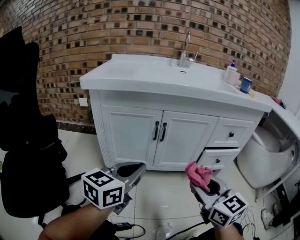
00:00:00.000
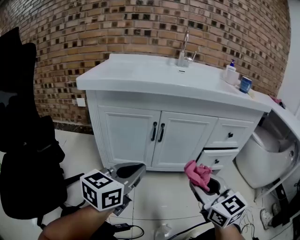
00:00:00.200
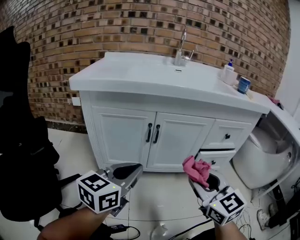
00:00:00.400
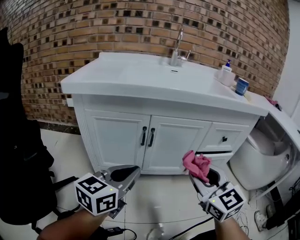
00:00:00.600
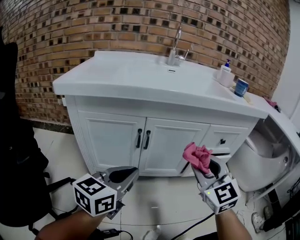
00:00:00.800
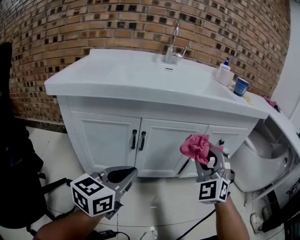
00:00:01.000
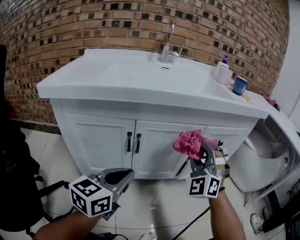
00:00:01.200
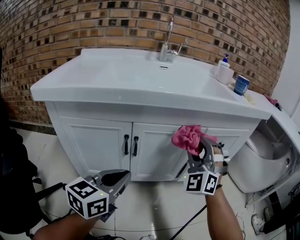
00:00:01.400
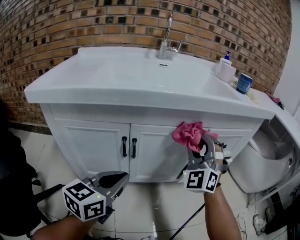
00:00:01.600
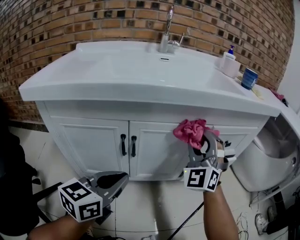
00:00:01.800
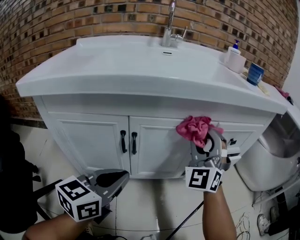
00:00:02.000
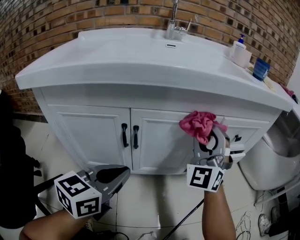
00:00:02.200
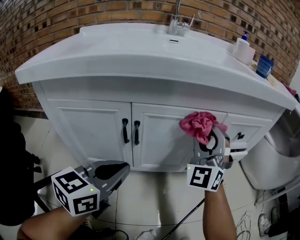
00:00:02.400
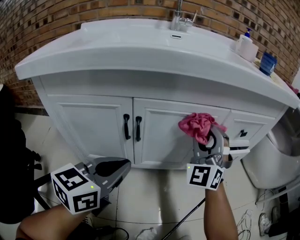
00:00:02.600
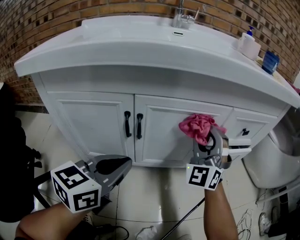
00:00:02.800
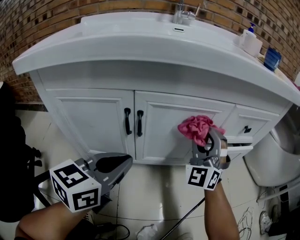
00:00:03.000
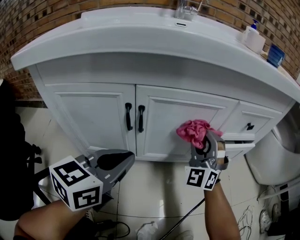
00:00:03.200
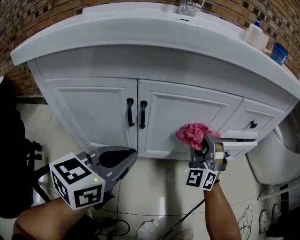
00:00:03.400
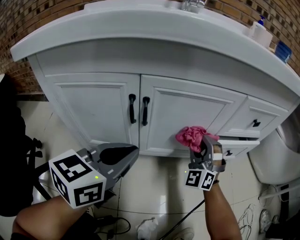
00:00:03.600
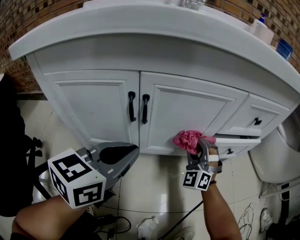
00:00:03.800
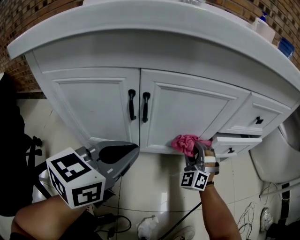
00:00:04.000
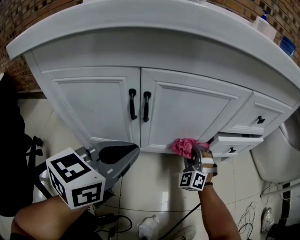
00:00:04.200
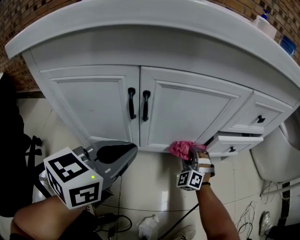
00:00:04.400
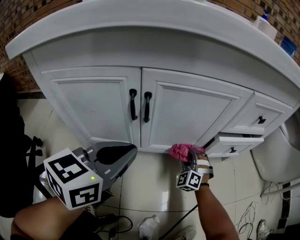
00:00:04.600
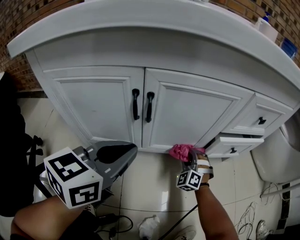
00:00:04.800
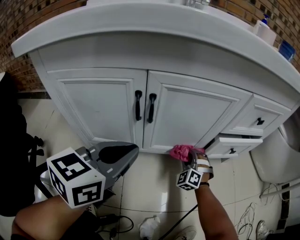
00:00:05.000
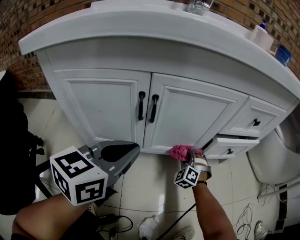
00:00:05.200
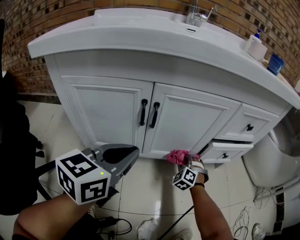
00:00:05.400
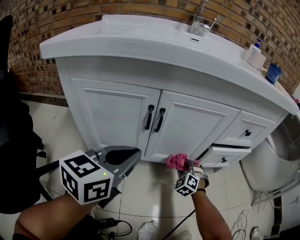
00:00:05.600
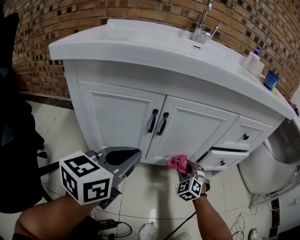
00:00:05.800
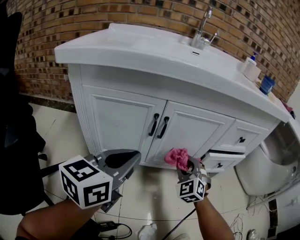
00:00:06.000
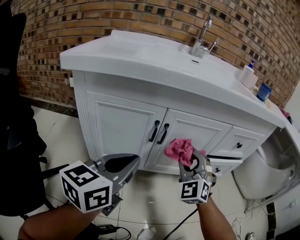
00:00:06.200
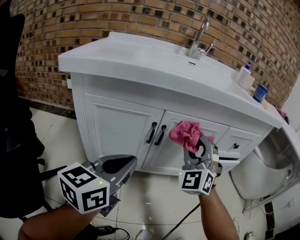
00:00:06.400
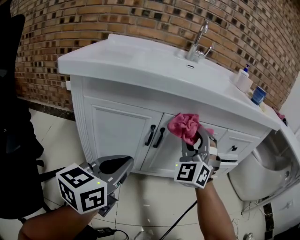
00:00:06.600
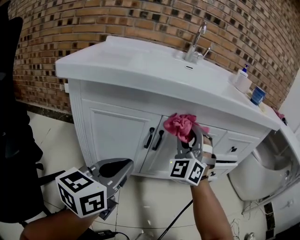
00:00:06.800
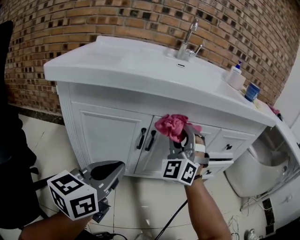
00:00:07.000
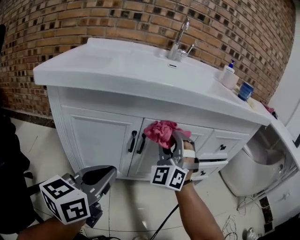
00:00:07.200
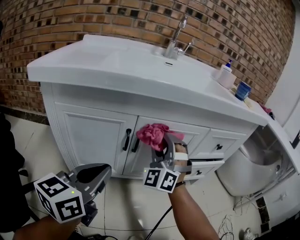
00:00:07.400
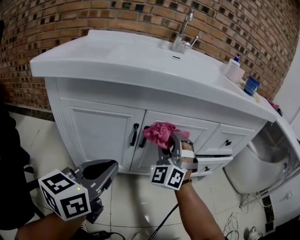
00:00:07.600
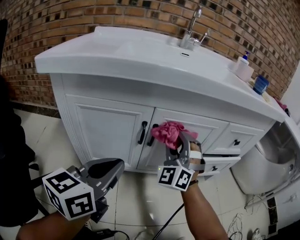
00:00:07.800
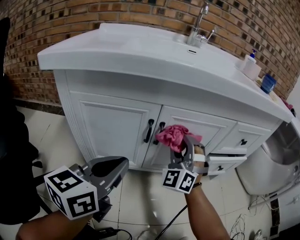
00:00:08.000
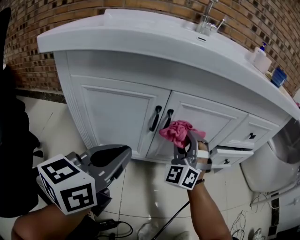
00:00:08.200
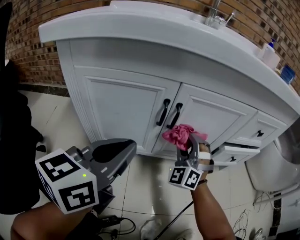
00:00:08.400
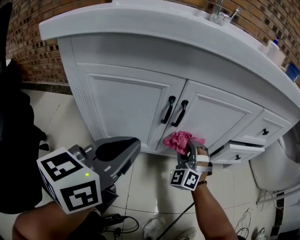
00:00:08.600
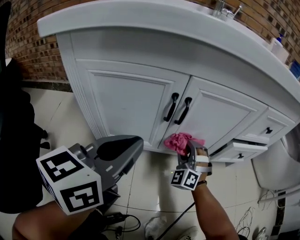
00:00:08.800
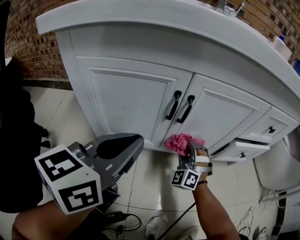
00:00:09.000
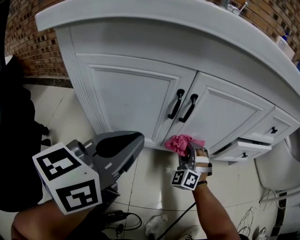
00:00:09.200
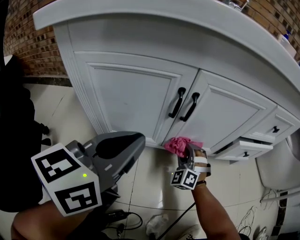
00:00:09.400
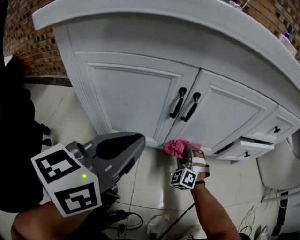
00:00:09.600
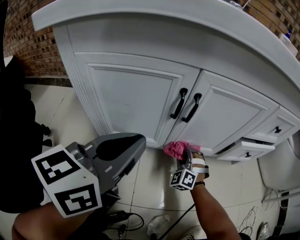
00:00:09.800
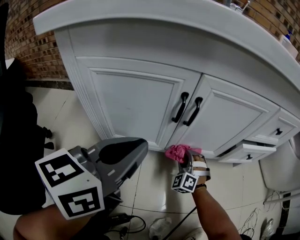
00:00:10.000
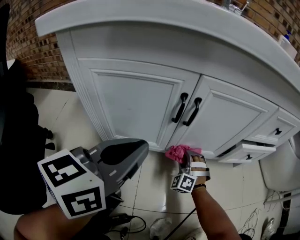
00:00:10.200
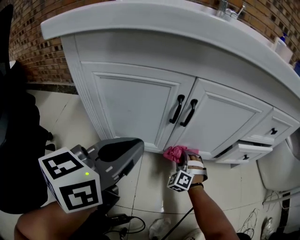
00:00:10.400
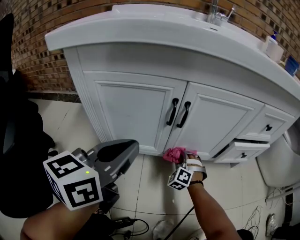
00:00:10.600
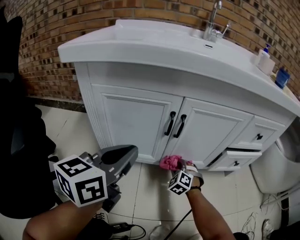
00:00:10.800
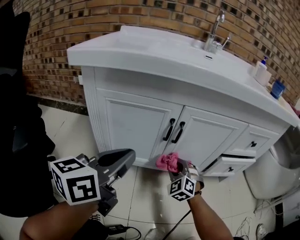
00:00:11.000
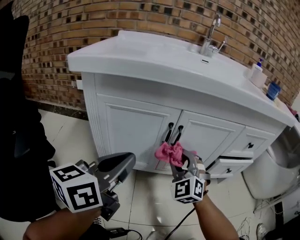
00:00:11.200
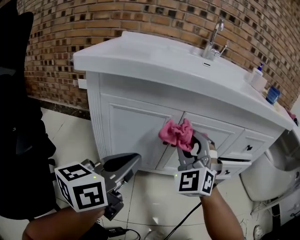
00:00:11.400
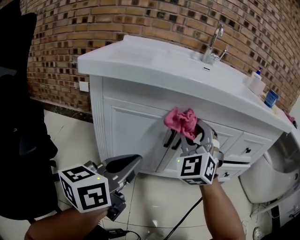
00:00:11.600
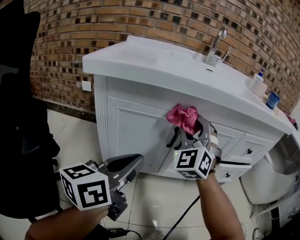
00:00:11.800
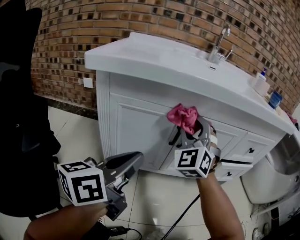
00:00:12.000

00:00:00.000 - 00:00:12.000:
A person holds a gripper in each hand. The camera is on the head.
00:00:00.000 - 00:00:01.600: The left gripper heads forward, covering about 15 cm, while the right gripper moves forward, about 30 cm, and twists approximately 60 degrees counterclockwise, seen from behind.
00:00:01.600 - 00:00:03.000: The right gripper shifts roughly 10 cm downward.
00:00:03.000 - 00:00:04.400: The right gripper shifts roughly 25 cm downward, and rotates about 30 degrees.
00:00:04.400 - 00:00:06.000: The left gripper travels upward and backward by approximately 10 cm. Meanwhile the right gripper travels upward and backward by about 15 cm.
00:00:06.000 - 00:00:07.600: The right gripper shifts some 15 cm upward and to the left, and swivels roughly 30 degrees.
00:00:07.600 - 00:00:09.000: The right gripper moves downward, roughly 25 cm.
00:00:09.000 - 00:00:10.400: The right gripper travels downward by approximately 10 cm.
00:00:10.400 - 00:00:12.000: The left gripper travels upward by some 5 cm; the right gripper is displaced upward by some 40 cm, and tips its fingers upward by roughly 30 degrees.

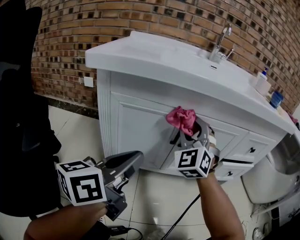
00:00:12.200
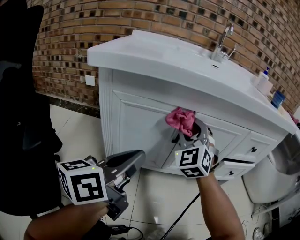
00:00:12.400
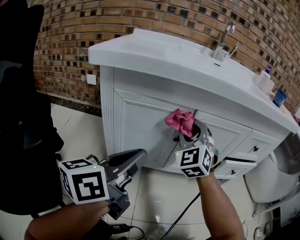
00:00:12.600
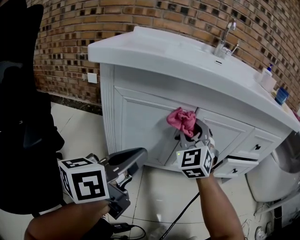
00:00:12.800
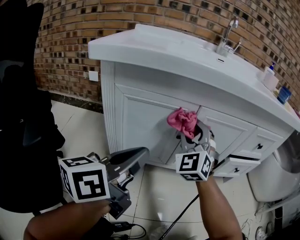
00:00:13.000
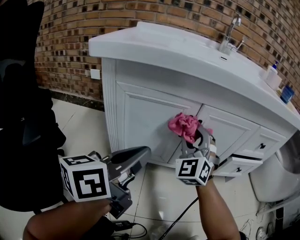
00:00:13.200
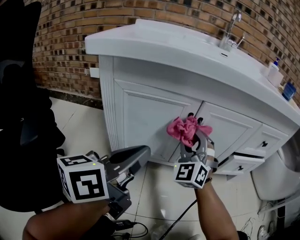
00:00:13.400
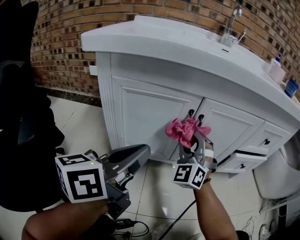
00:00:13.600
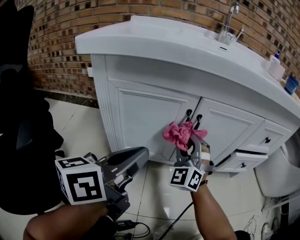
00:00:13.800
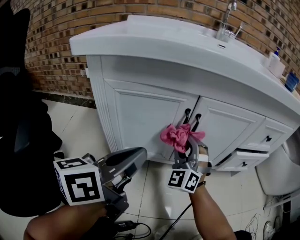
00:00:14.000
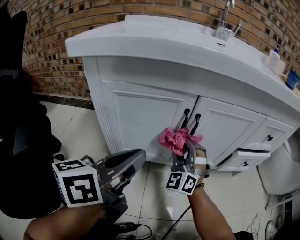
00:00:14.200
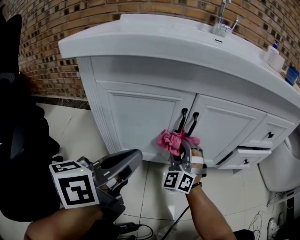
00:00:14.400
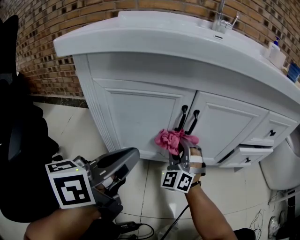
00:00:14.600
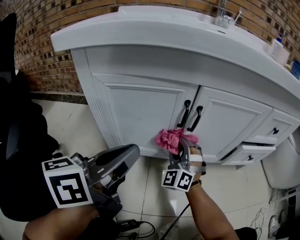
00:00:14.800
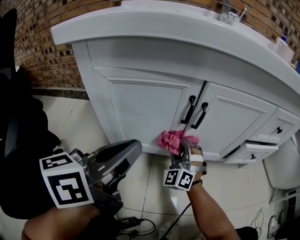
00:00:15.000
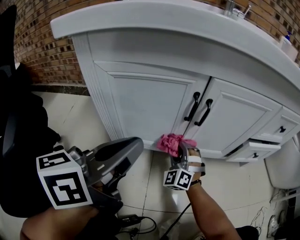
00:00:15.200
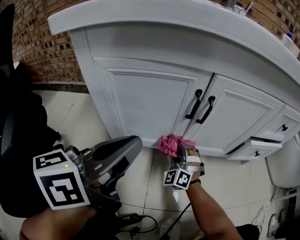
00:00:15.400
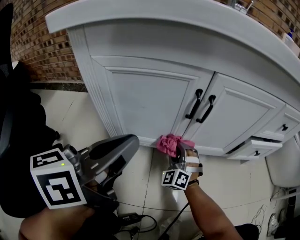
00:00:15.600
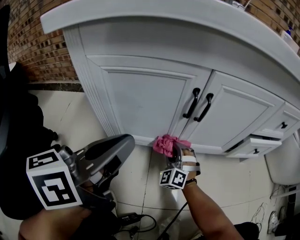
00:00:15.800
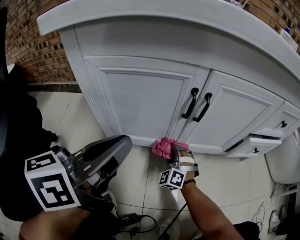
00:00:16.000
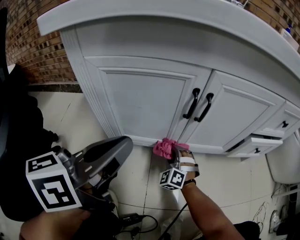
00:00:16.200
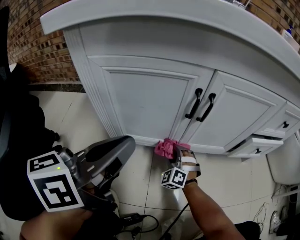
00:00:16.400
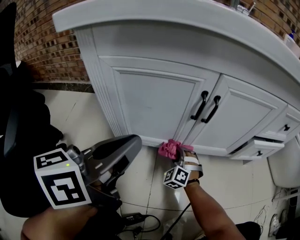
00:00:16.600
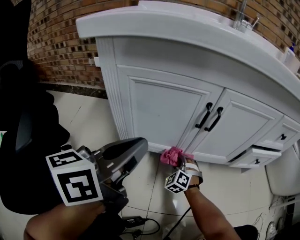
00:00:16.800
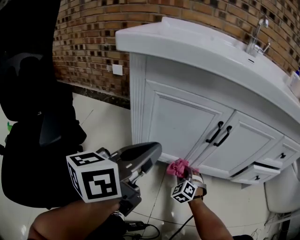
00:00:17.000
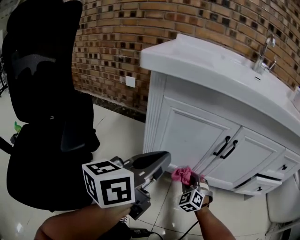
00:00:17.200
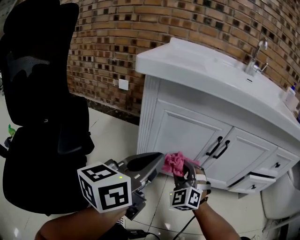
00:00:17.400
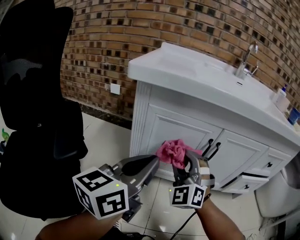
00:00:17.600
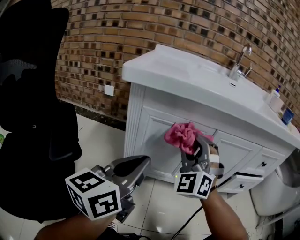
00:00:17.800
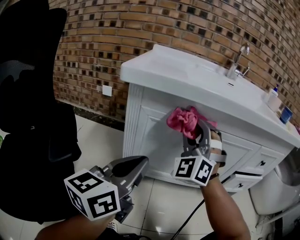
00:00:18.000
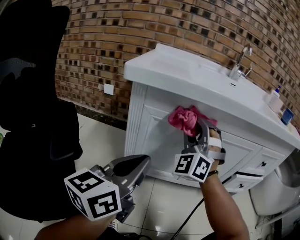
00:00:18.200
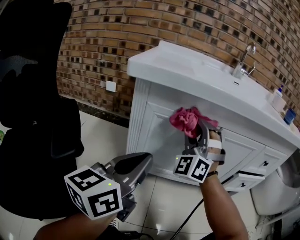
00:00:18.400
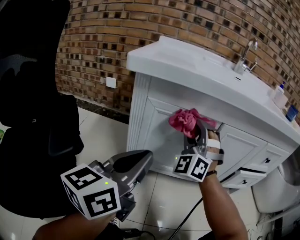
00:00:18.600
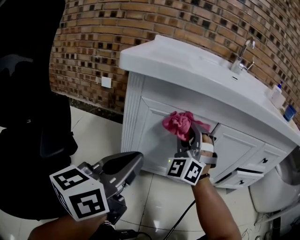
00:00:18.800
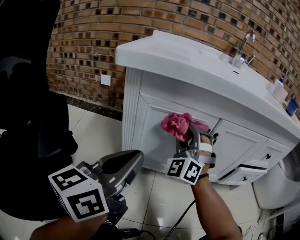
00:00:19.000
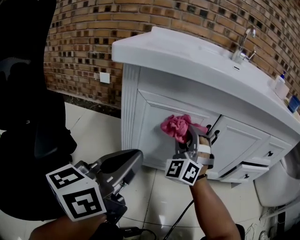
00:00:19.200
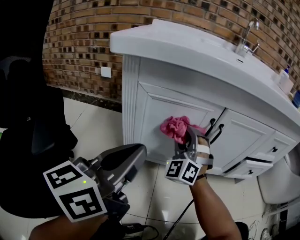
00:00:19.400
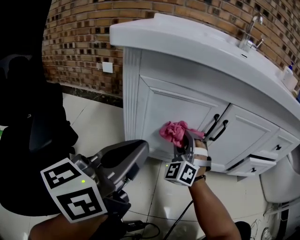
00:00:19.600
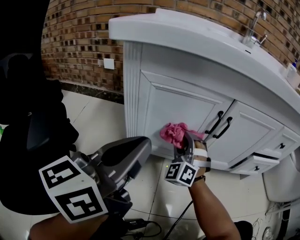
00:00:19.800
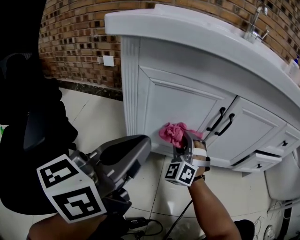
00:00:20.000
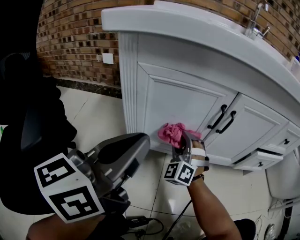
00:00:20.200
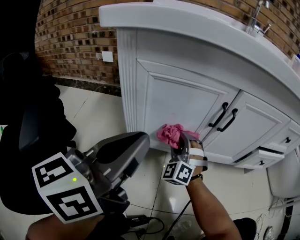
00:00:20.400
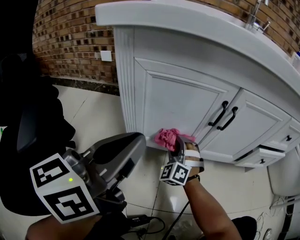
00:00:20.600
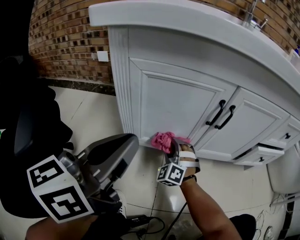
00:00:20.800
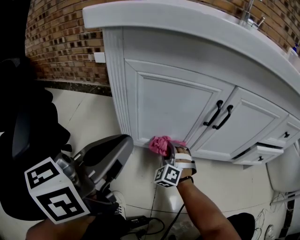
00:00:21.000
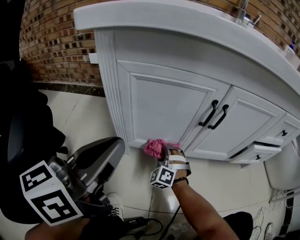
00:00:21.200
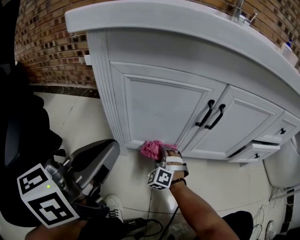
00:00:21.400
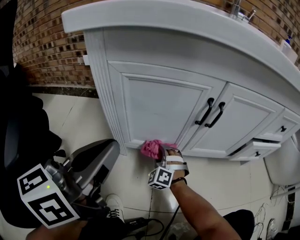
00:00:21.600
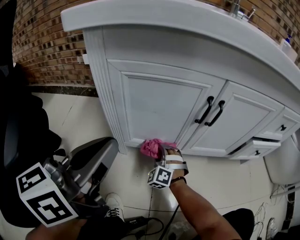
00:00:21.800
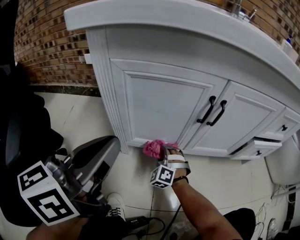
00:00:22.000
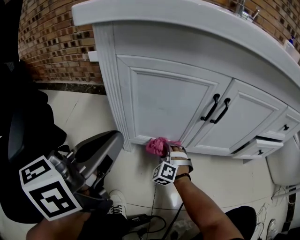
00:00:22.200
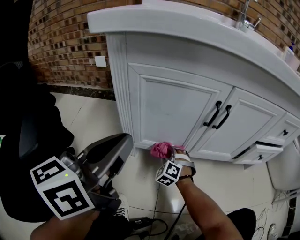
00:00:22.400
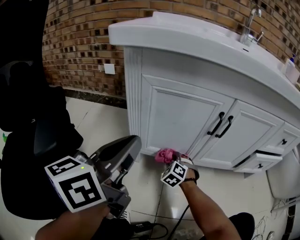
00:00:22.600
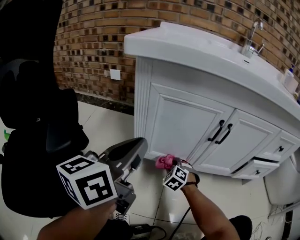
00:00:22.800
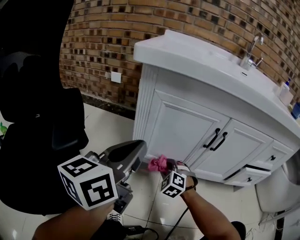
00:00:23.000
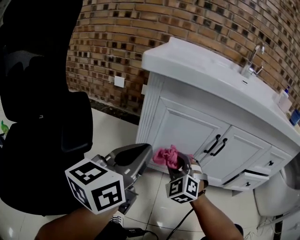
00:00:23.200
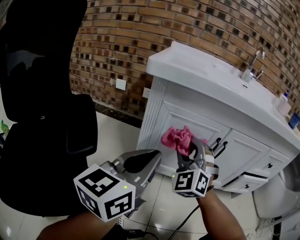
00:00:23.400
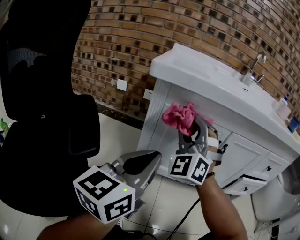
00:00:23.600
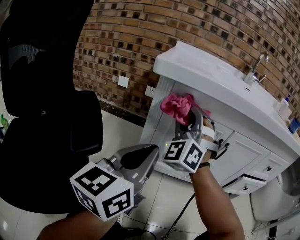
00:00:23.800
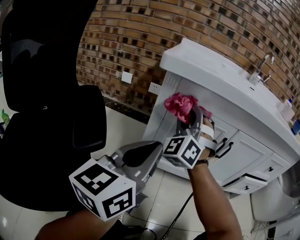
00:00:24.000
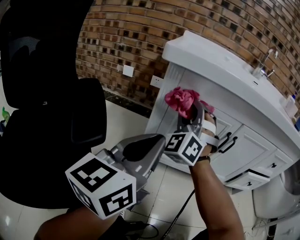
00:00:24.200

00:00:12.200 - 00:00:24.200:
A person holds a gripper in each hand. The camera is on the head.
00:00:12.200 - 00:00:13.800: The right gripper heads downward, covering approximately 15 cm.
00:00:13.800 - 00:00:15.200: The right gripper travels downward by roughly 20 cm.
00:00:15.200 - 00:00:16.600: The right gripper goes some 10 cm downward.
00:00:16.600 - 00:00:18.200: The right gripper is displaced upward by some 40 cm, and points its fingers roughly 40 degrees further upward. Meanwhile the left gripper moves upward, to the left and backward, roughly 10 cm.
00:00:18.200 - 00:00:19.800: The right gripper moves downward, approximately 25 cm.
00:00:19.800 - 00:00:21.200: The right gripper moves downward, roughly 20 cm.
00:00:21.200 - 00:00:22.600: The right gripper rotates approximately 20 degrees.
00:00:22.600 - 00:00:24.200: The left gripper shifts about 5 cm upward, while the right gripper moves upward, approximately 40 cm, and points its fingers roughly 50 degrees further upward.
